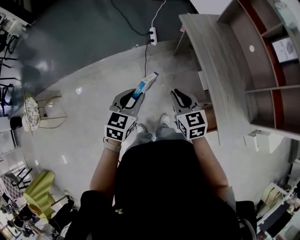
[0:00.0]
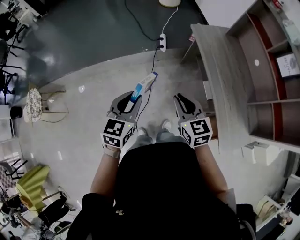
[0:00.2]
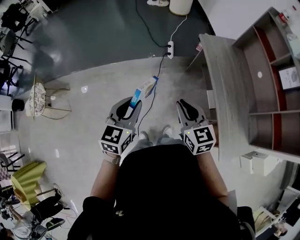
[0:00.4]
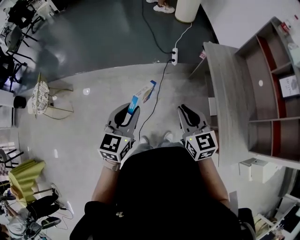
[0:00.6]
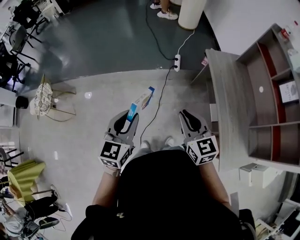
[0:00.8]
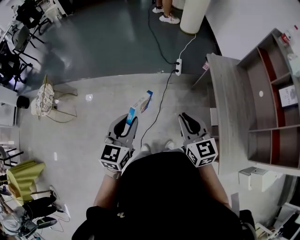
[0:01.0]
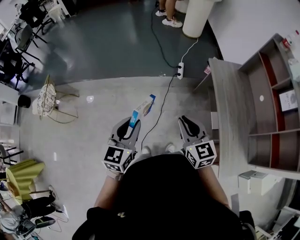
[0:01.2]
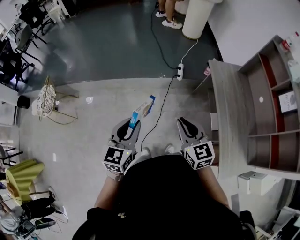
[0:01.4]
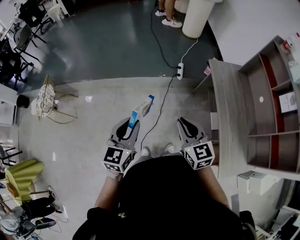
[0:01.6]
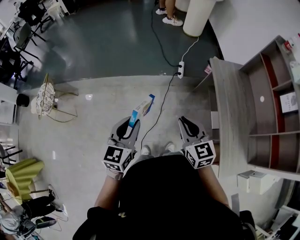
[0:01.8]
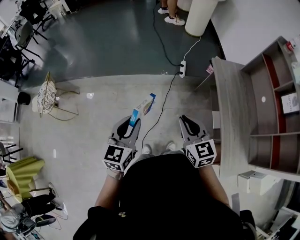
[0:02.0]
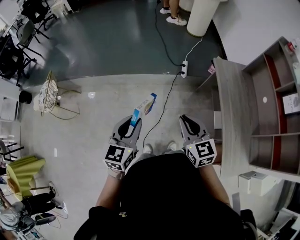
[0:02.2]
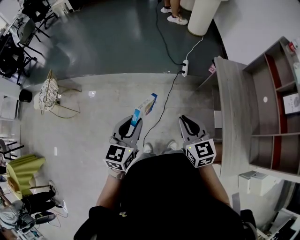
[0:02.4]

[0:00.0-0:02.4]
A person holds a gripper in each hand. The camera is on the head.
0:00.0 to 0:01.2: The right gripper shifts some 15 cm upward and to the left. The left gripper goes approximately 20 cm to the left, upward and backward, and swivels roughly 30 degrees.
0:01.2 to 0:02.4: The grippers make only small movements.

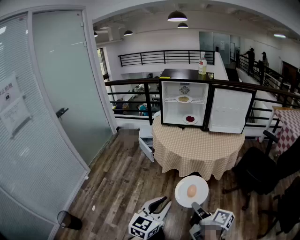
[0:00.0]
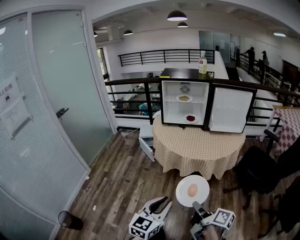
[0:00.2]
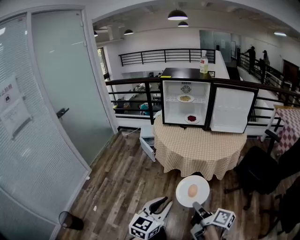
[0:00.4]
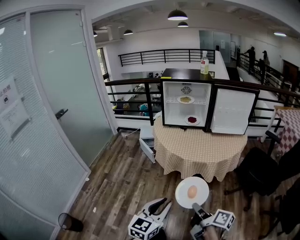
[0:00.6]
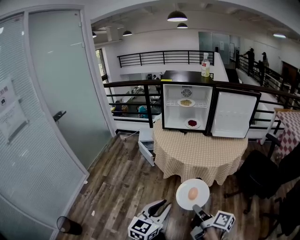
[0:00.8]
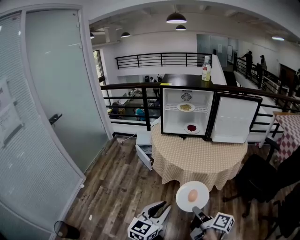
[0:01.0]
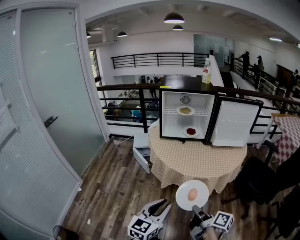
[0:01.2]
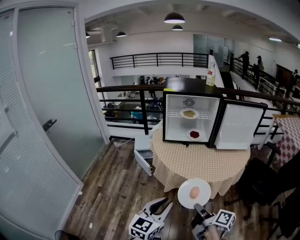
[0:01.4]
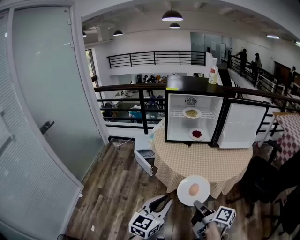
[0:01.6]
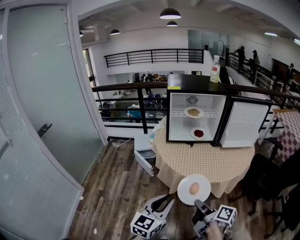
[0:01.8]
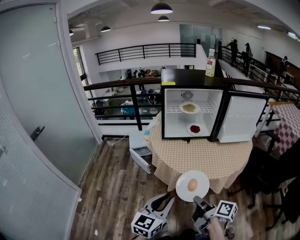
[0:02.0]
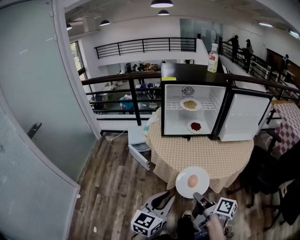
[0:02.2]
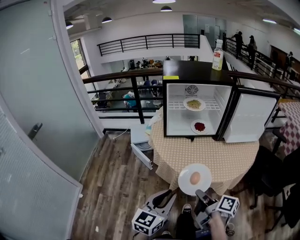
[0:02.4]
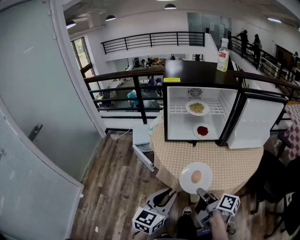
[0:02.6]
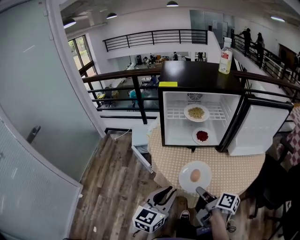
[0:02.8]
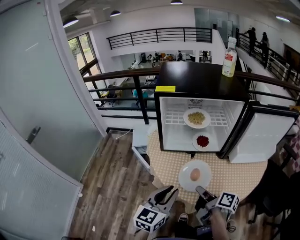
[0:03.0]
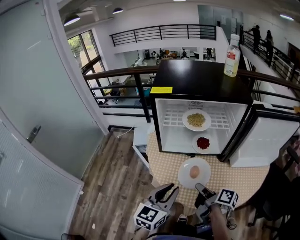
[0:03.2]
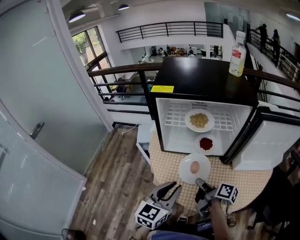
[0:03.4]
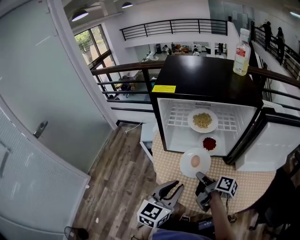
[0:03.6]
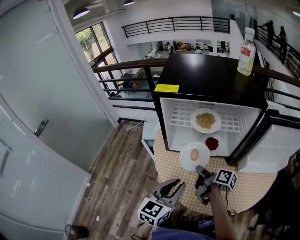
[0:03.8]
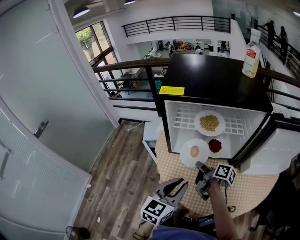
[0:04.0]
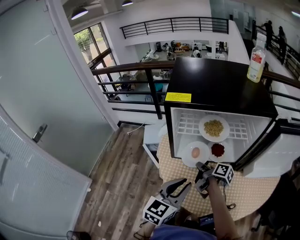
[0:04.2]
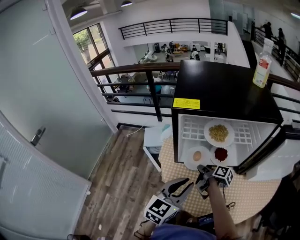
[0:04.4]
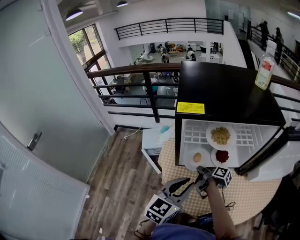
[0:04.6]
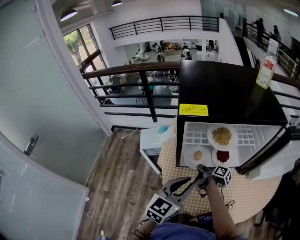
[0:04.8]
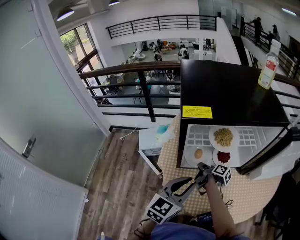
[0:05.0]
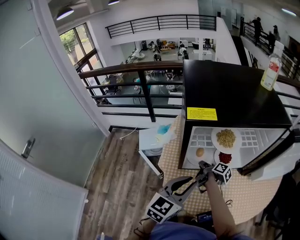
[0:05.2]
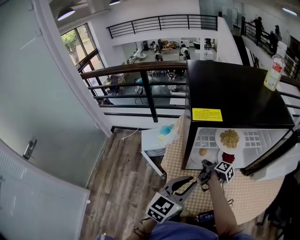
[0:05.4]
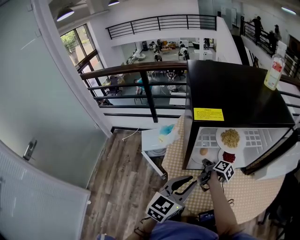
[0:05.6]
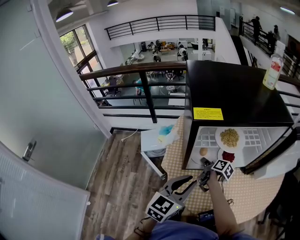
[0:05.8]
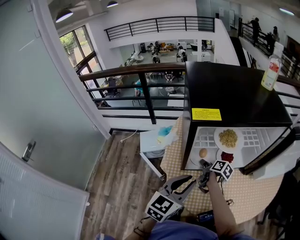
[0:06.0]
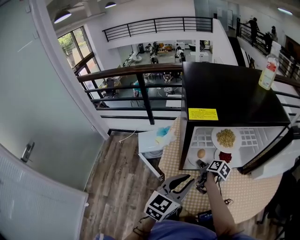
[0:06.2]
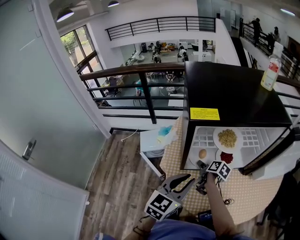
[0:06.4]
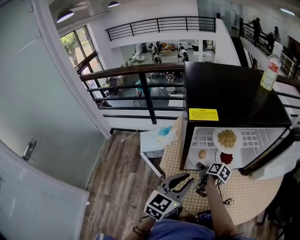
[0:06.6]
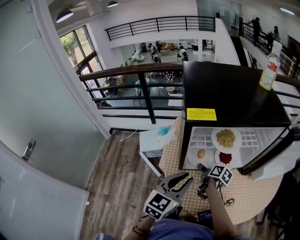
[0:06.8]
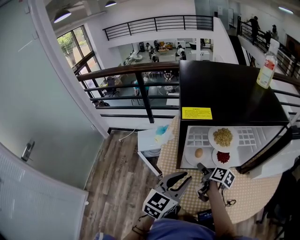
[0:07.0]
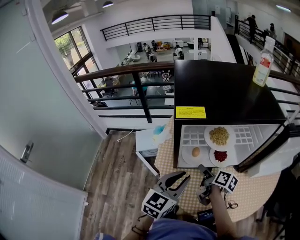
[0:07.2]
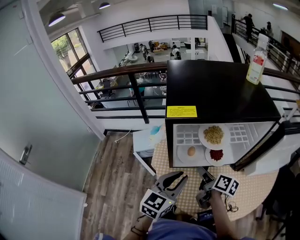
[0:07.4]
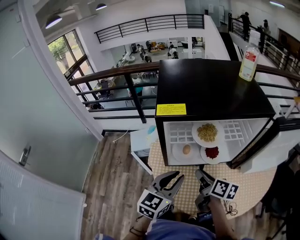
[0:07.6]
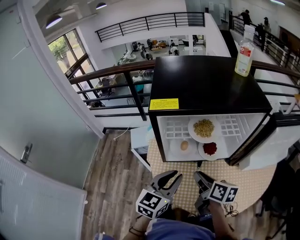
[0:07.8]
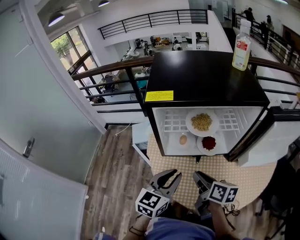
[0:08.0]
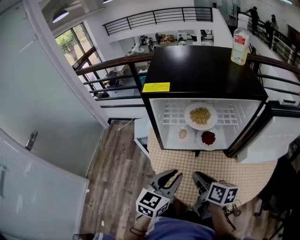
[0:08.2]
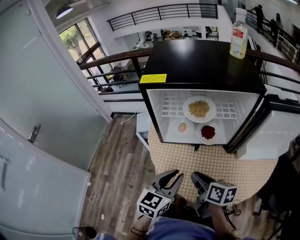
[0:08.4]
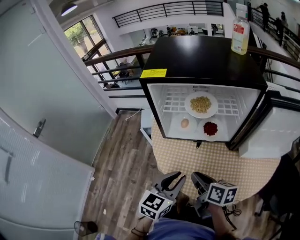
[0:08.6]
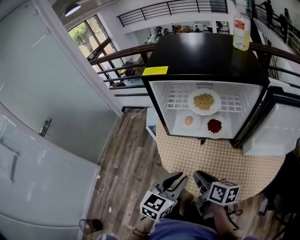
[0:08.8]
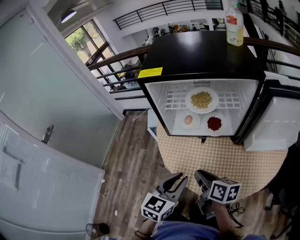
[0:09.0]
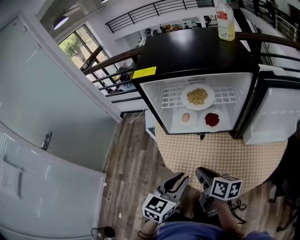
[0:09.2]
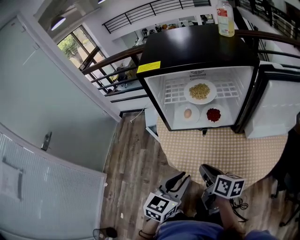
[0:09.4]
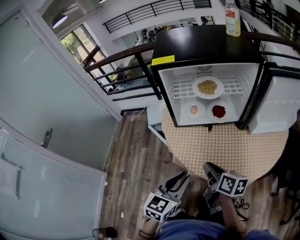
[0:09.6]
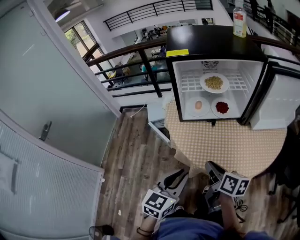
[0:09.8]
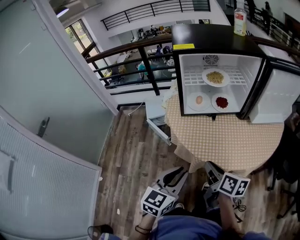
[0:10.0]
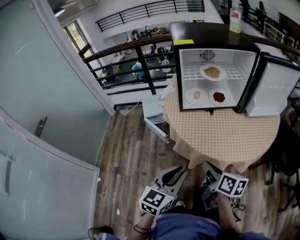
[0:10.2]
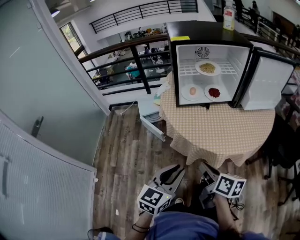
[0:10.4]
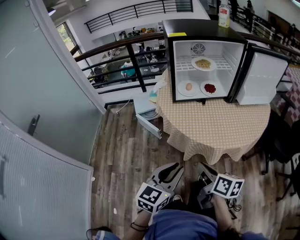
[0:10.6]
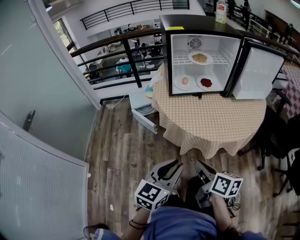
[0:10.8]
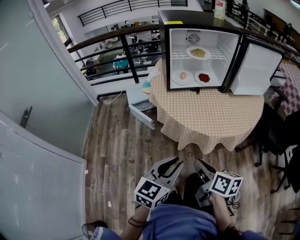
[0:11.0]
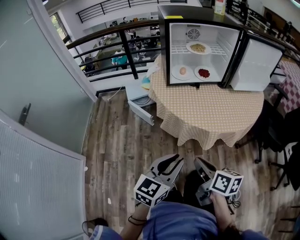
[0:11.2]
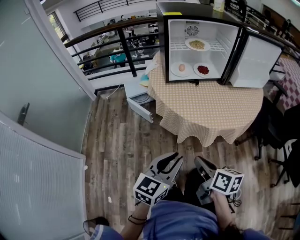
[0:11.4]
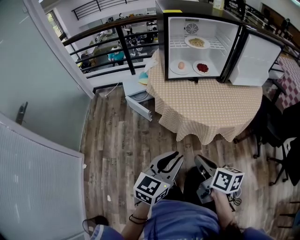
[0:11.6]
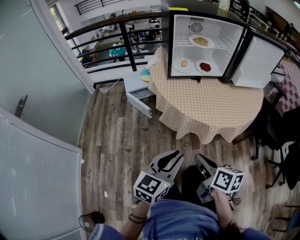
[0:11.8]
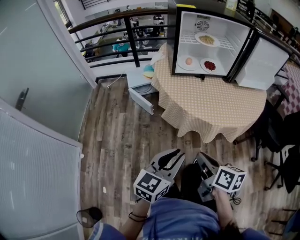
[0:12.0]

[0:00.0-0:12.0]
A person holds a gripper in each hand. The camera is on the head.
0:00.0 to 0:01.6: The two grippers go about 25 cm forward and to the left.
0:01.6 to 0:03.0: The grippers both shift forward by about 30 cm.
0:03.0 to 0:04.4: The right gripper shifts some 25 cm forward. Meanwhile the left gripper heads forward, covering approximately 15 cm.
0:04.4 to 0:06.0: The right gripper moves forward, approximately 5 cm, and opens its fingers, while the left gripper travels to the left by approximately 5 cm.
0:06.0 to 0:07.6: The right gripper shifts about 15 cm upward and backward, swivels roughly 20 degrees, and opens and closes again.
0:07.6 to 0:09.0: The right gripper is displaced backward by about 15 cm, while the left gripper goes roughly 15 cm backward and to the right.
0:09.0 to 0:10.4: Both grippers travel together backward and to the left, roughly 25 cm.
0:10.4 to 0:12.0: The two grippers go some 10 cm backward.

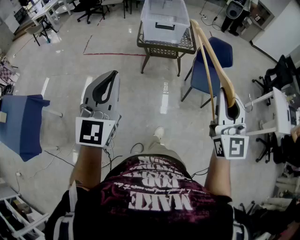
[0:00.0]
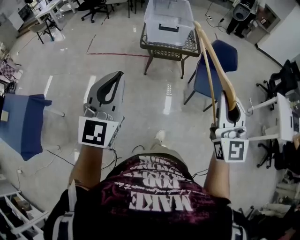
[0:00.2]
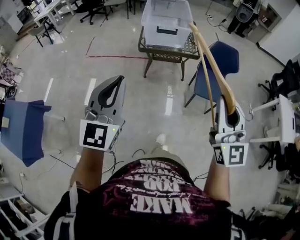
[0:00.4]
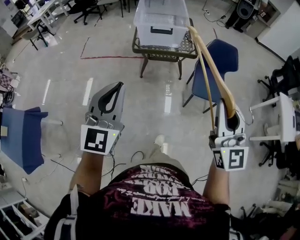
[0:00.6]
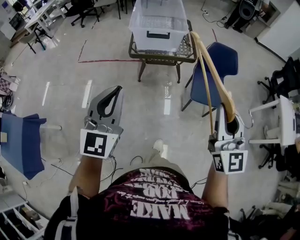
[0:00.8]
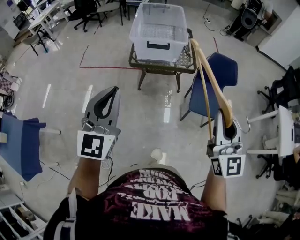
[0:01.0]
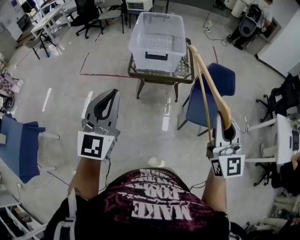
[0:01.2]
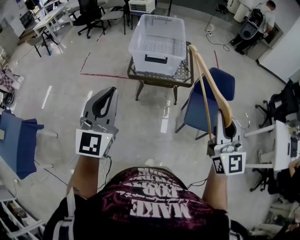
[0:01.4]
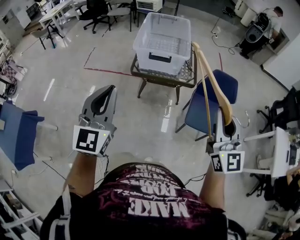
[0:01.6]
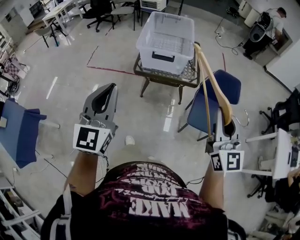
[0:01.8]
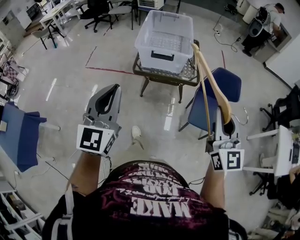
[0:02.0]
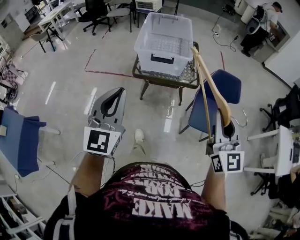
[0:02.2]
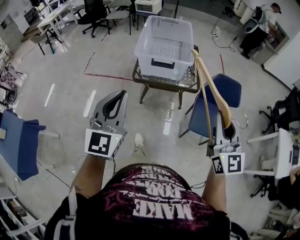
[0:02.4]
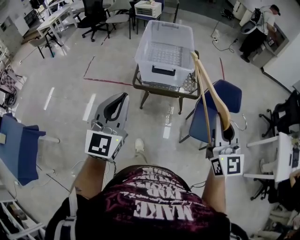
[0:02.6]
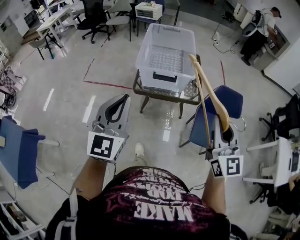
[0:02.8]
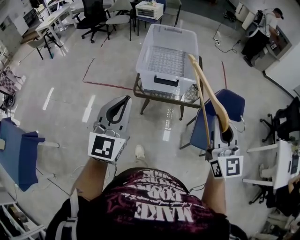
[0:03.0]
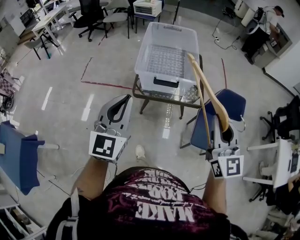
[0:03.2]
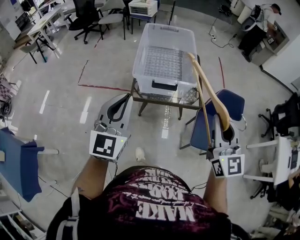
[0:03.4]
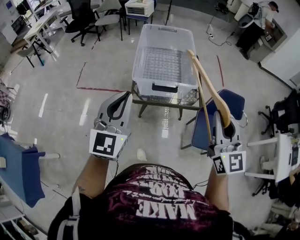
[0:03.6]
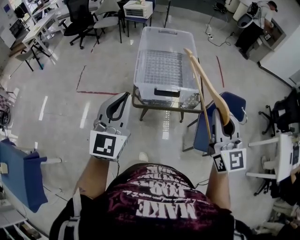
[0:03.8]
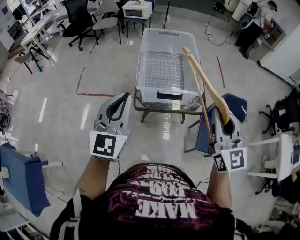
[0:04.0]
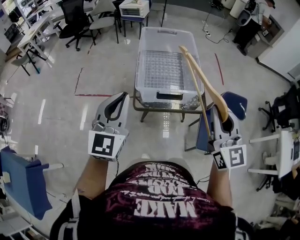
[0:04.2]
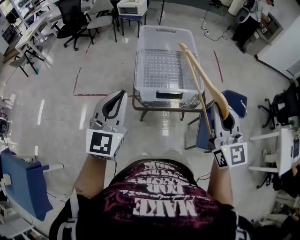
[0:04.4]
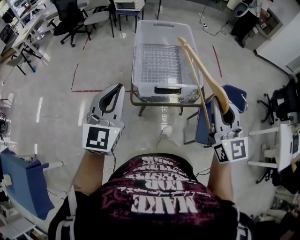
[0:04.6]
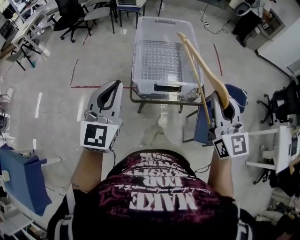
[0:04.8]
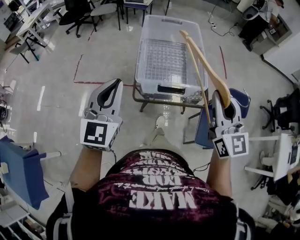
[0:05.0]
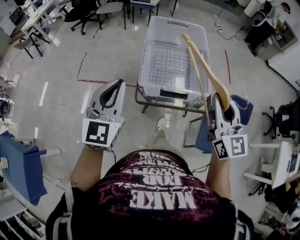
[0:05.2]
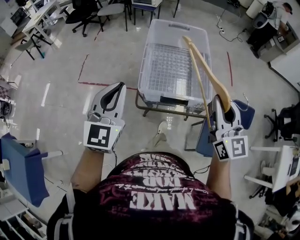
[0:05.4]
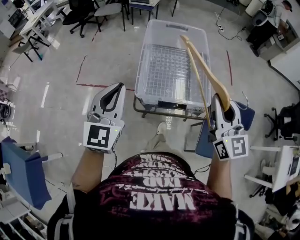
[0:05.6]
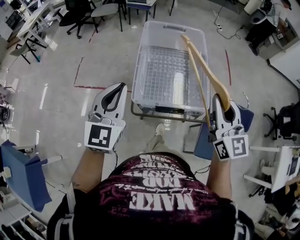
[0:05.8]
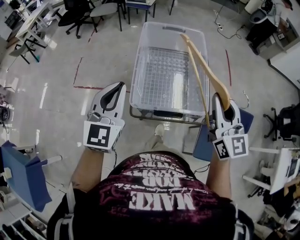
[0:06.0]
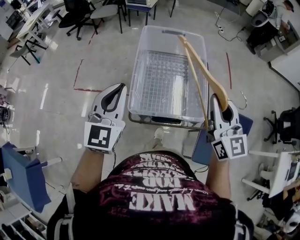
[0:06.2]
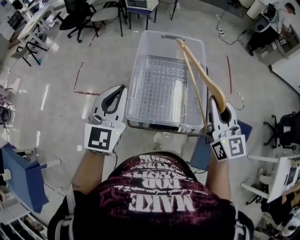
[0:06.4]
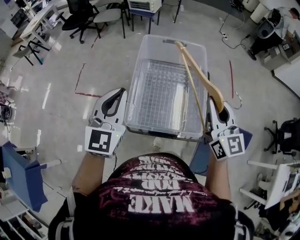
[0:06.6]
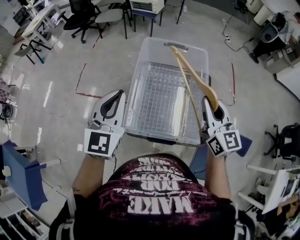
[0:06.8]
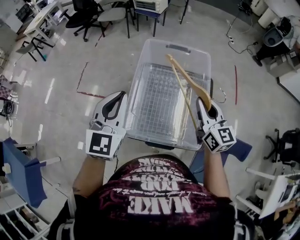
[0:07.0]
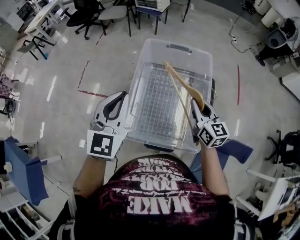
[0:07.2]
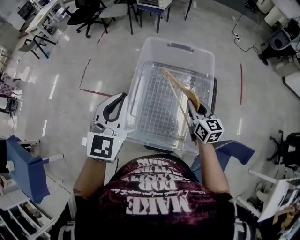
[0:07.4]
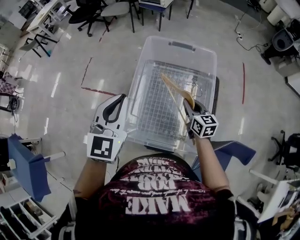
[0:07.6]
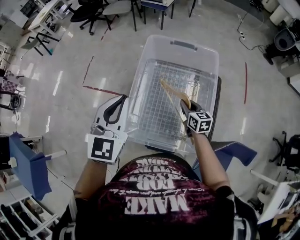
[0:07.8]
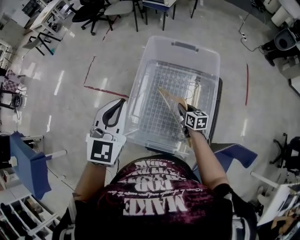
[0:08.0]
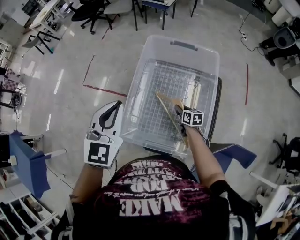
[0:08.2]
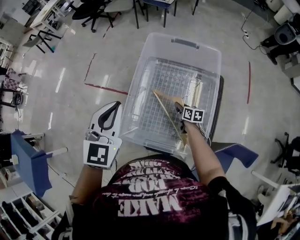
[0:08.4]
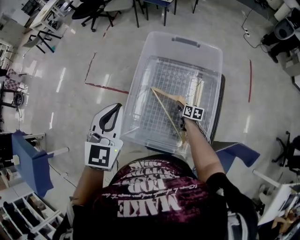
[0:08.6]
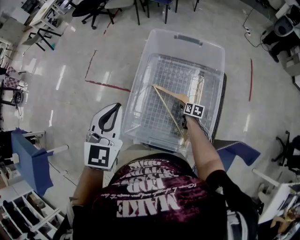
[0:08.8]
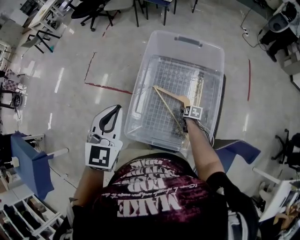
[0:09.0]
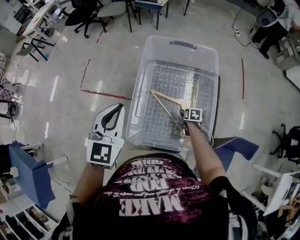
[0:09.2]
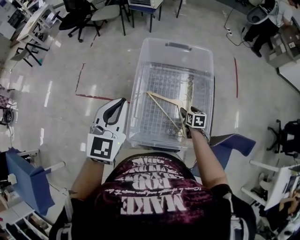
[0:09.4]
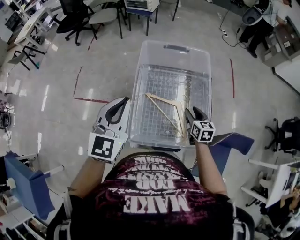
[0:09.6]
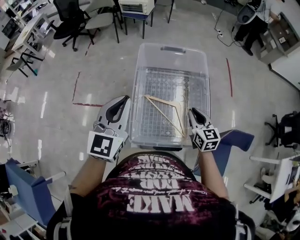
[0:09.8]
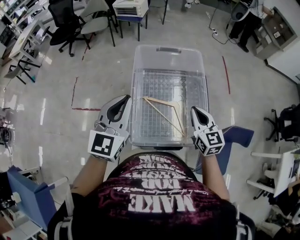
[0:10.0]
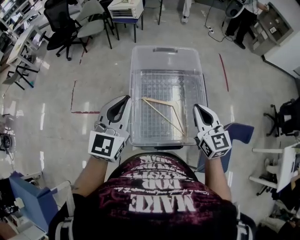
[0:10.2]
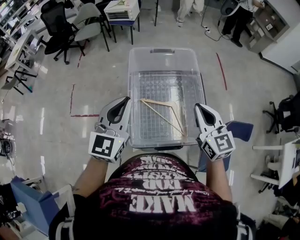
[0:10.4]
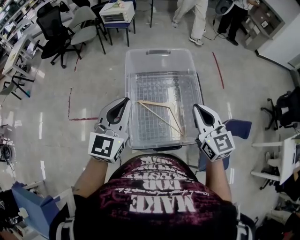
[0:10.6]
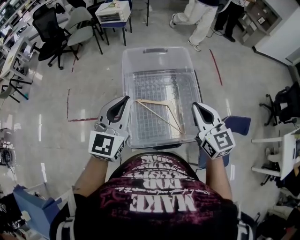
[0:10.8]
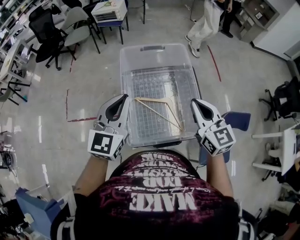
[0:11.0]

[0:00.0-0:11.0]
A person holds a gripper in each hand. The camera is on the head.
0:00.0 to 0:01.6: The left gripper goes approximately 25 cm forward, while the right gripper heads forward and to the right, covering some 30 cm.
0:01.6 to 0:03.2: The right gripper heads forward and to the left, covering roughly 20 cm, while the left gripper heads forward, covering about 20 cm.
0:03.2 to 0:04.8: Both grippers move forward and to the left, some 15 cm.
0:04.8 to 0:06.2: Both grippers move forward, some 20 cm.
0:06.2 to 0:07.8: The right gripper moves downward and forward, roughly 40 cm, and angles its fingers downward, by about 30 degrees; the left gripper shifts about 15 cm forward and to the right.
0:07.8 to 0:09.4: The right gripper moves downward, roughly 10 cm, turns by about 30 degrees, and opens its fingers.
0:09.4 to 0:11.0: The right gripper travels upward by some 35 cm, angles its fingers upward, by approximately 40 degrees, and closes.
